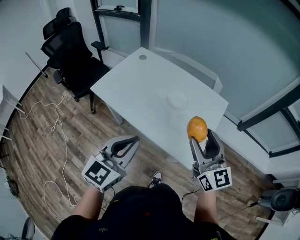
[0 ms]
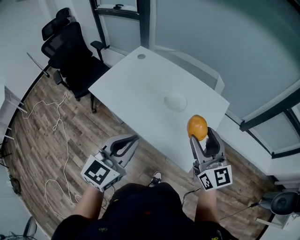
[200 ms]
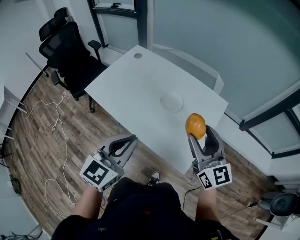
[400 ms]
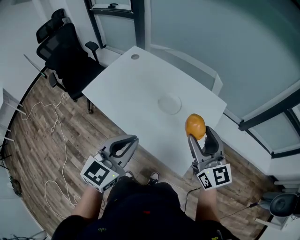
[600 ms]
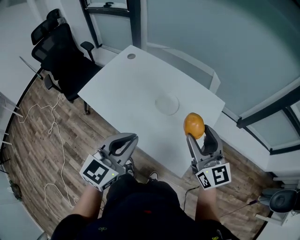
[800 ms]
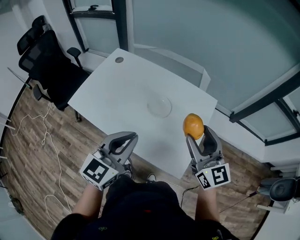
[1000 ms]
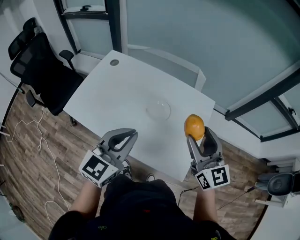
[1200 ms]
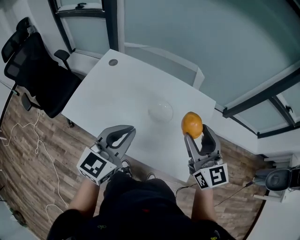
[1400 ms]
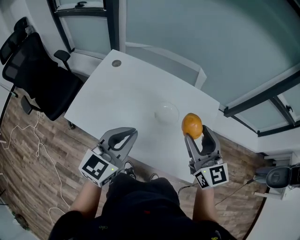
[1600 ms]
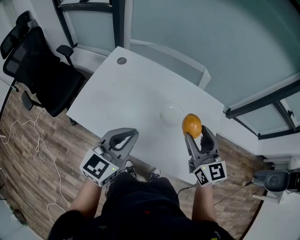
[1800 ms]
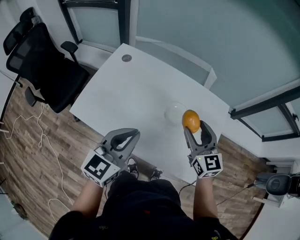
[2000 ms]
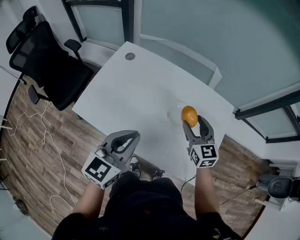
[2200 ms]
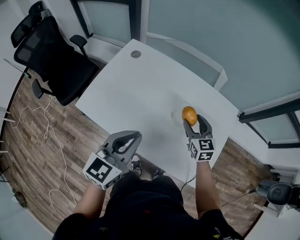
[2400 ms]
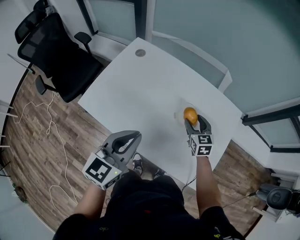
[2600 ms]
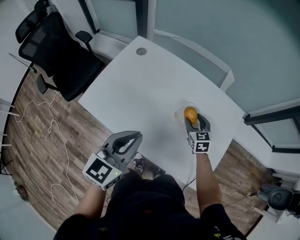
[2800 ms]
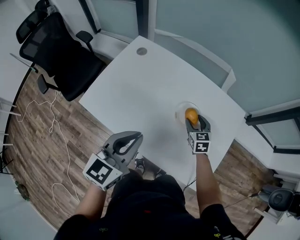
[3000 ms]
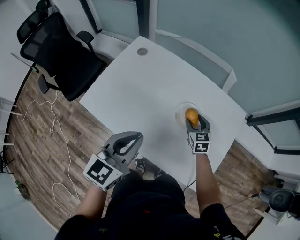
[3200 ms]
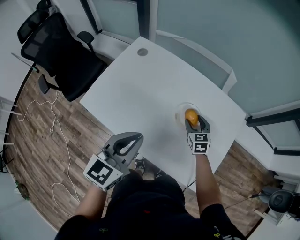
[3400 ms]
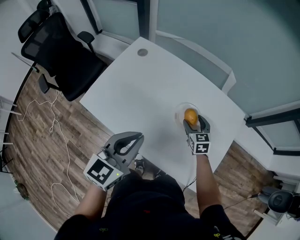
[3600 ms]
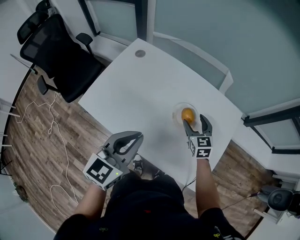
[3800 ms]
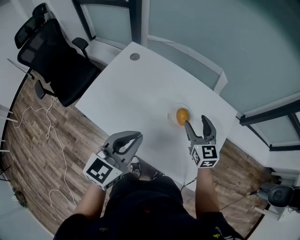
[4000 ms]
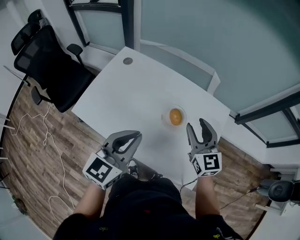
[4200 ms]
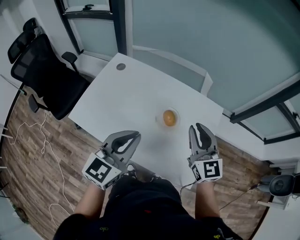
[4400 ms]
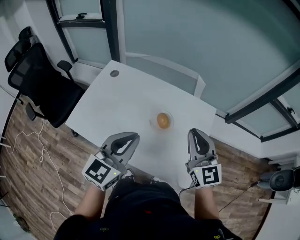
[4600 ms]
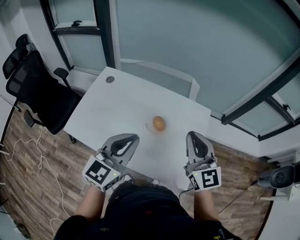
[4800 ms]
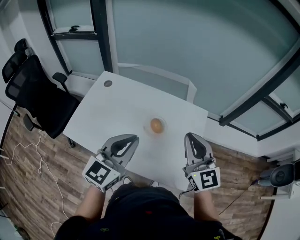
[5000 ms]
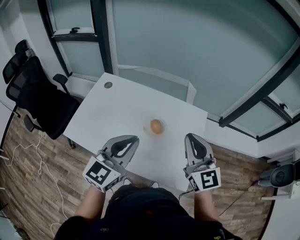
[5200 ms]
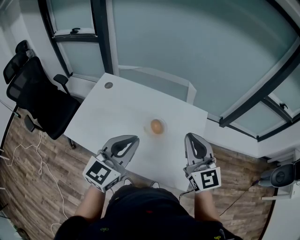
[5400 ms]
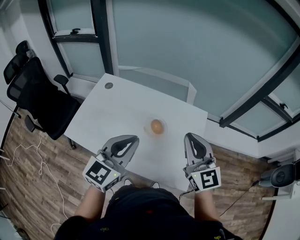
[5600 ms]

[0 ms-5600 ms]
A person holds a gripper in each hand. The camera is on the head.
0 ms to 1400 ms: Both grippers travel together forward, approximately 20 cm.
1400 ms to 2800 ms: The left gripper goes about 10 cm to the left and downward, while the right gripper goes some 35 cm downward and forward, and points its fingers approximately 30 degrees further downward.
2800 ms to 4200 ms: The right gripper travels upward by approximately 20 cm, and turns by some 30 degrees; the left gripper ends up some 5 cm from where it was.
4200 ms to 5600 ms: The left gripper travels upward and to the right by some 10 cm; the right gripper heads upward, backward and to the right, covering about 15 cm, and closes its fingers.

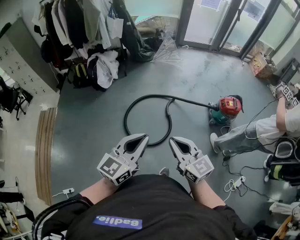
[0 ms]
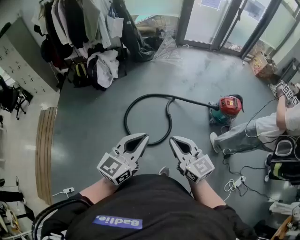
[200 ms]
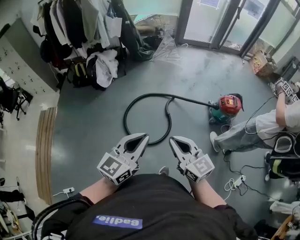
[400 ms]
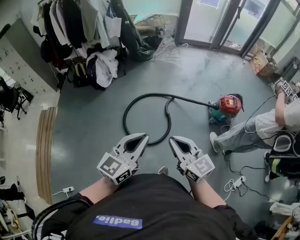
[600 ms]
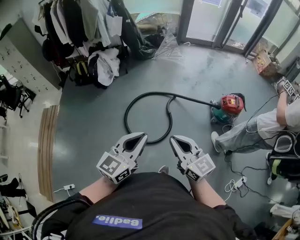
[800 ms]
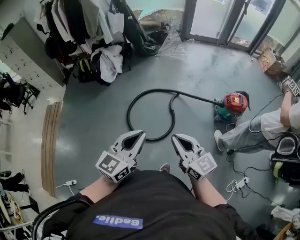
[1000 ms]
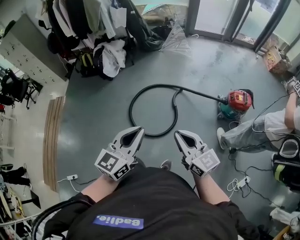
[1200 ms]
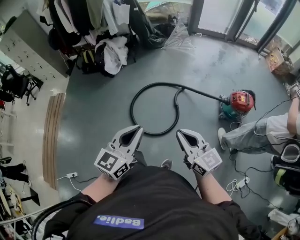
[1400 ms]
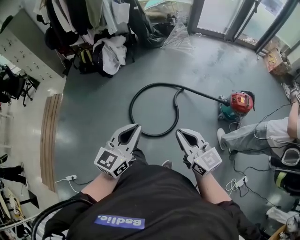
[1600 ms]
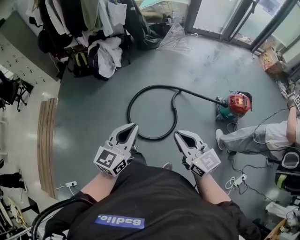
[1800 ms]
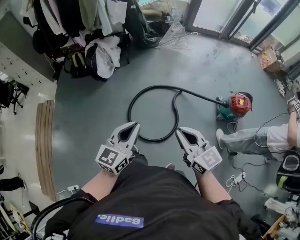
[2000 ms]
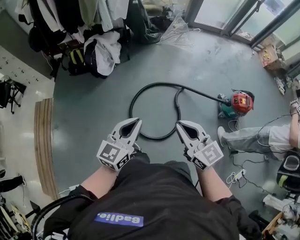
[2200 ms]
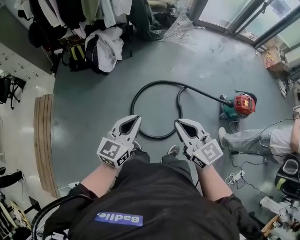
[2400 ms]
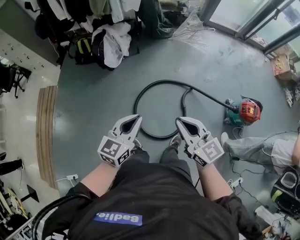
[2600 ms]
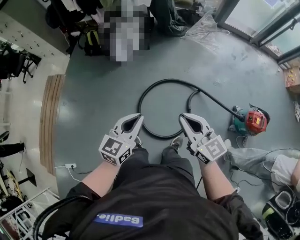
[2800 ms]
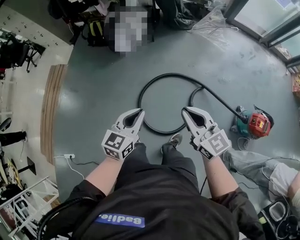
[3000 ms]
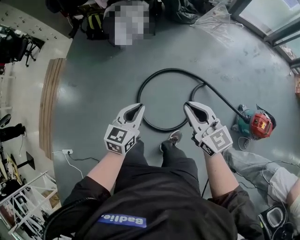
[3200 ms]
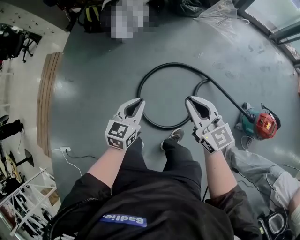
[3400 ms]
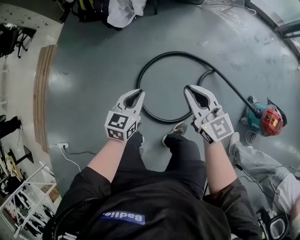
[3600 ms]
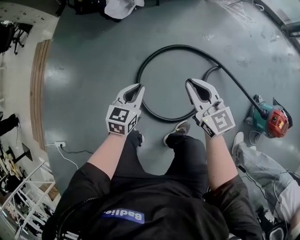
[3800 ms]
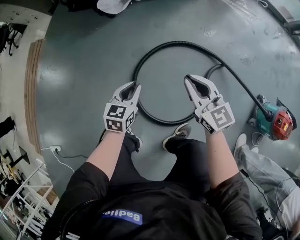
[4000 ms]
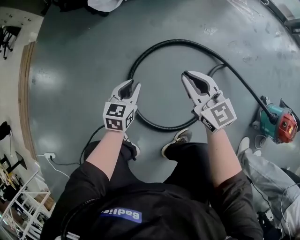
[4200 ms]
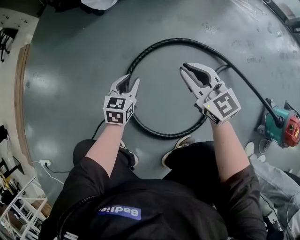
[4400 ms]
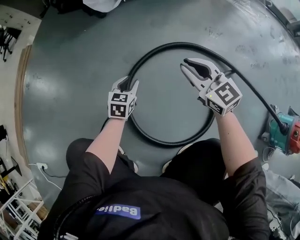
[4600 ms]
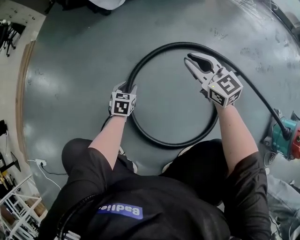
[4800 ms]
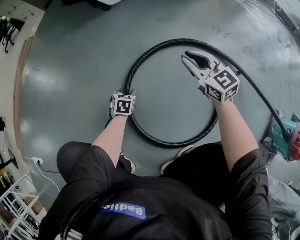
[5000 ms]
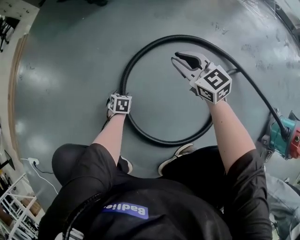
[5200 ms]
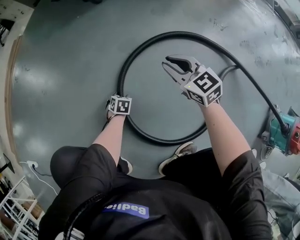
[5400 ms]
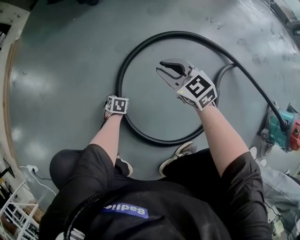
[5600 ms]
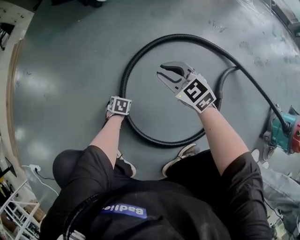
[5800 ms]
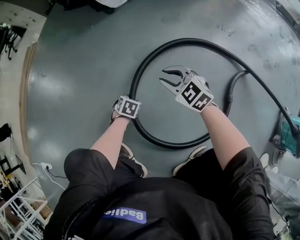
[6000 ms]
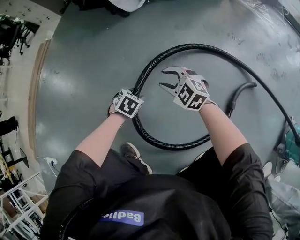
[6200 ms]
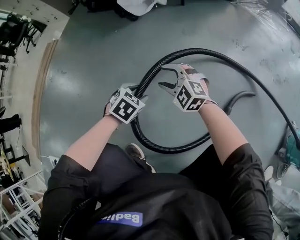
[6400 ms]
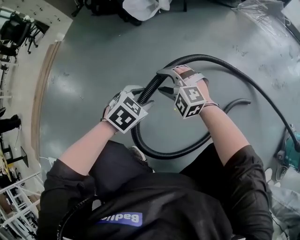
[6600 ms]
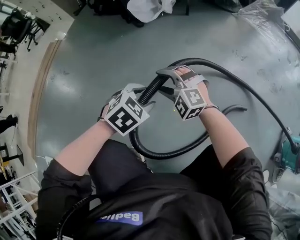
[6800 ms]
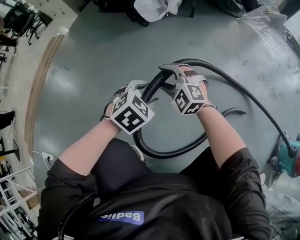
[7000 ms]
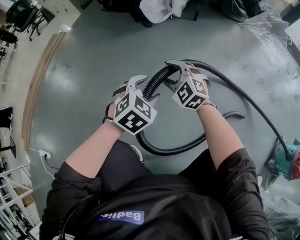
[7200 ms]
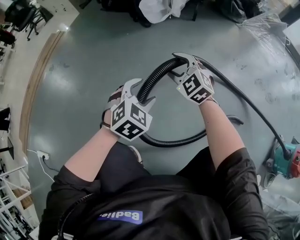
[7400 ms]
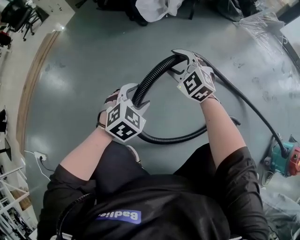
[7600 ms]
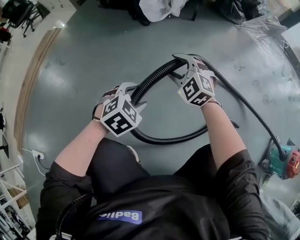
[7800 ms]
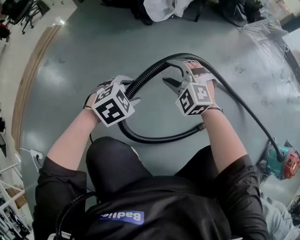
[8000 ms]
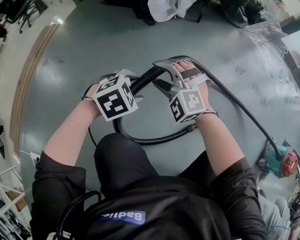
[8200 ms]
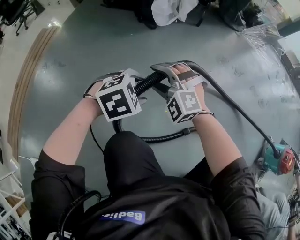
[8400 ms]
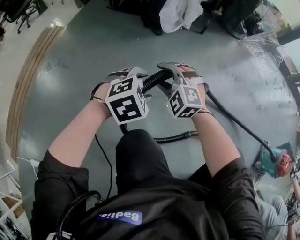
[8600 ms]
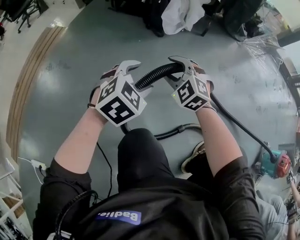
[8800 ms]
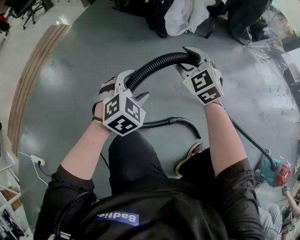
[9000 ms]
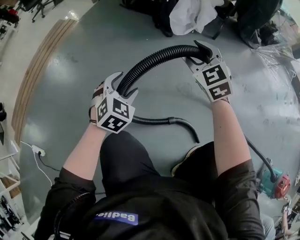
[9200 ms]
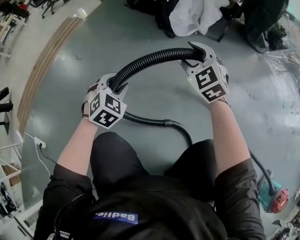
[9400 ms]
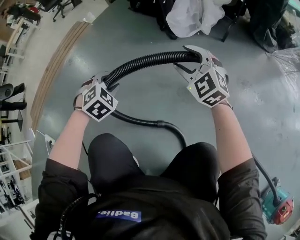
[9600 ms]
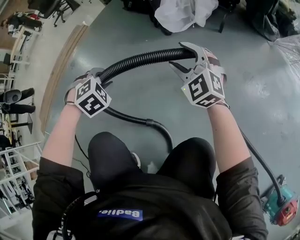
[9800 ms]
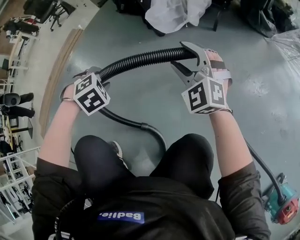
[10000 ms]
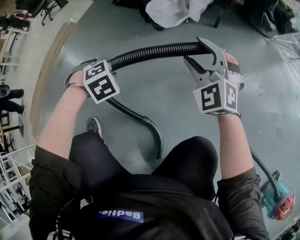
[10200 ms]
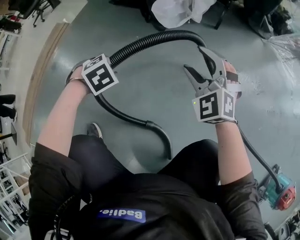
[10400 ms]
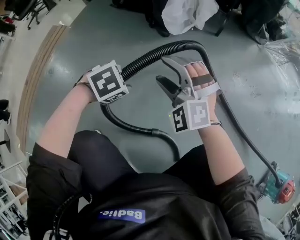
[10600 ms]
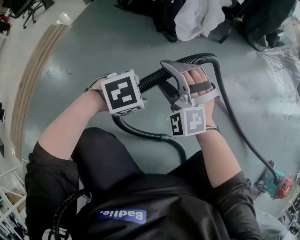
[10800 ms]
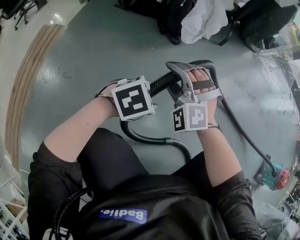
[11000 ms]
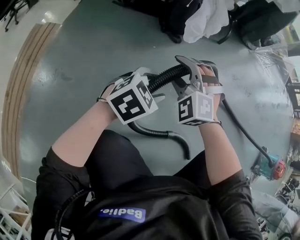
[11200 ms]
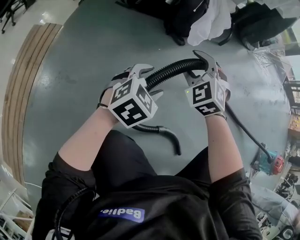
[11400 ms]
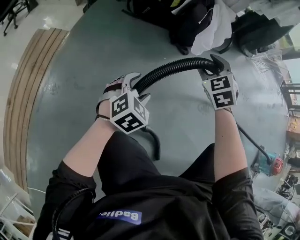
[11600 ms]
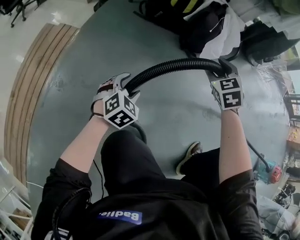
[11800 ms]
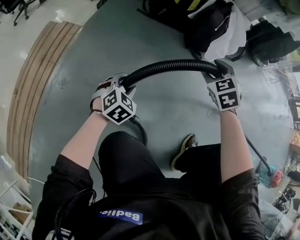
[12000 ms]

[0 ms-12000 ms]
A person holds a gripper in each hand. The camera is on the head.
0 ms to 1600 ms: The left gripper shifts roughly 10 cm forward and downward; the right gripper travels forward by some 5 cm.
1600 ms to 3000 ms: The left gripper shifts roughly 30 cm forward and downward, and changes its angle by some 20 degrees. The right gripper is displaced forward by about 30 cm.
3000 ms to 4400 ms: Both grippers travel together downward, about 60 cm.
4400 ms to 6000 ms: The two grippers go roughly 20 cm downward. The right gripper rotates roughly 30 degrees; the left gripper tips its fingers downward by roughly 40 degrees.
6000 ms to 7600 ms: The right gripper moves about 20 cm, turns by some 20 degrees, and opens its fingers. Meanwhile the left gripper shifts roughly 30 cm upward, and rotates roughly 40 degrees.
7600 ms to 9000 ms: The right gripper shifts approximately 20 cm to the left, forward and upward, while the left gripper shifts roughly 20 cm to the left and forward.
9000 ms to 10400 ms: The left gripper changes place by about 15 cm, points its fingers some 40 degrees further downward, and closes up, while the right gripper shifts by approximately 15 cm.
10400 ms to 12000 ms: The right gripper shifts by some 35 cm, and swivels roughly 40 degrees, while the left gripper shifts by some 35 cm, and turns by about 30 degrees.

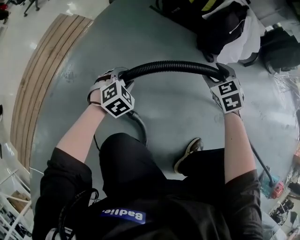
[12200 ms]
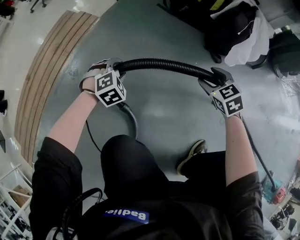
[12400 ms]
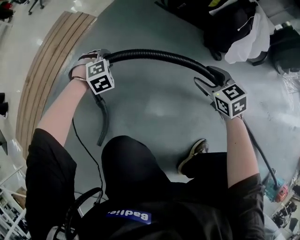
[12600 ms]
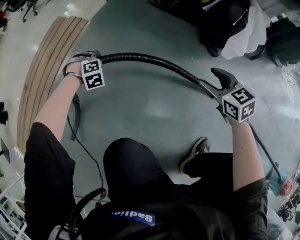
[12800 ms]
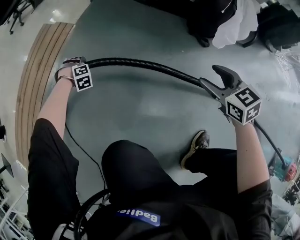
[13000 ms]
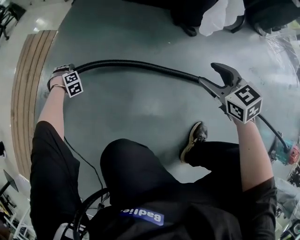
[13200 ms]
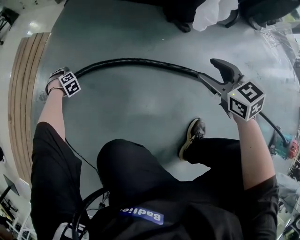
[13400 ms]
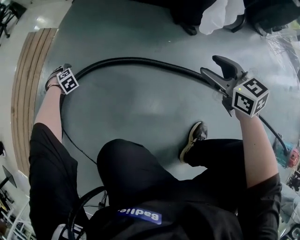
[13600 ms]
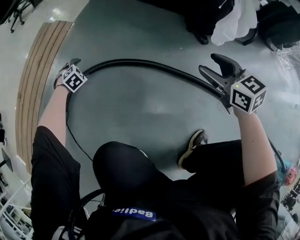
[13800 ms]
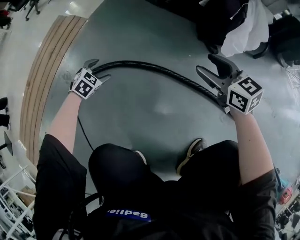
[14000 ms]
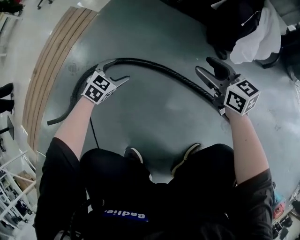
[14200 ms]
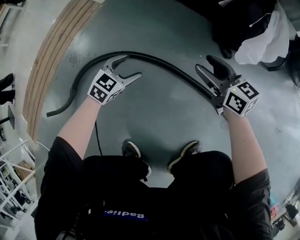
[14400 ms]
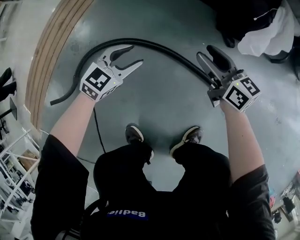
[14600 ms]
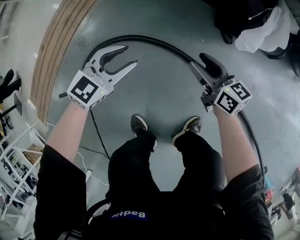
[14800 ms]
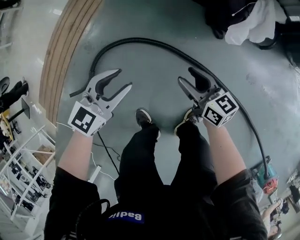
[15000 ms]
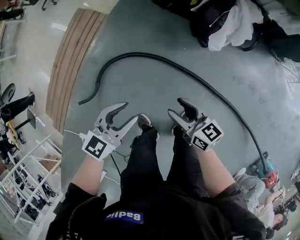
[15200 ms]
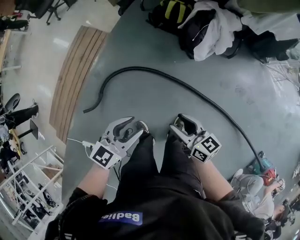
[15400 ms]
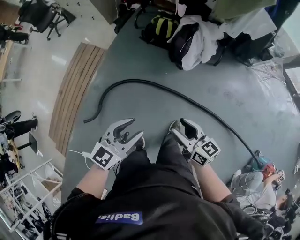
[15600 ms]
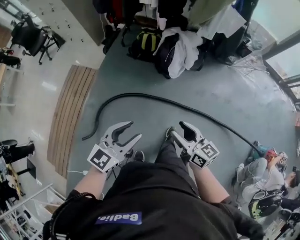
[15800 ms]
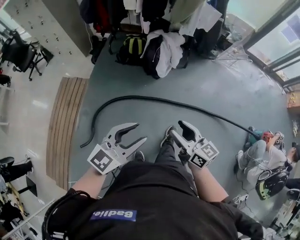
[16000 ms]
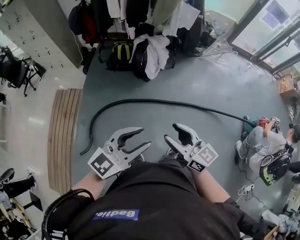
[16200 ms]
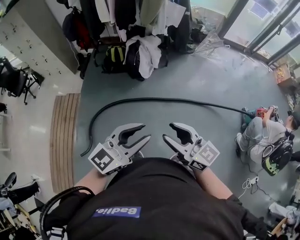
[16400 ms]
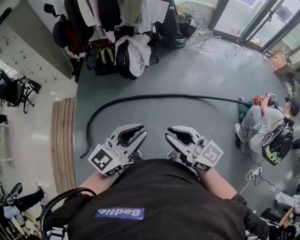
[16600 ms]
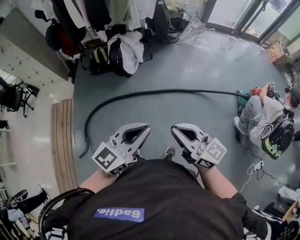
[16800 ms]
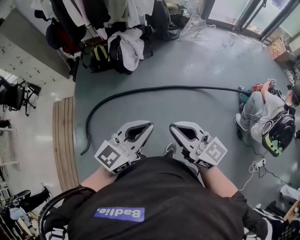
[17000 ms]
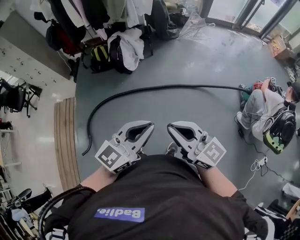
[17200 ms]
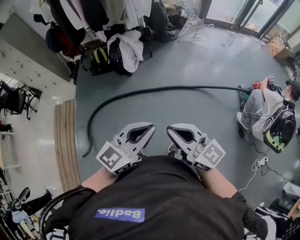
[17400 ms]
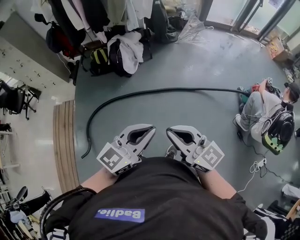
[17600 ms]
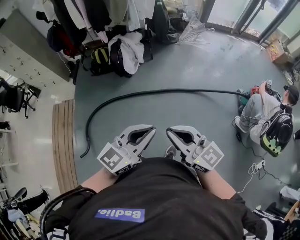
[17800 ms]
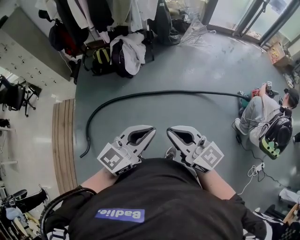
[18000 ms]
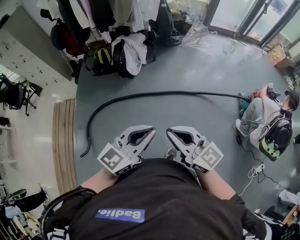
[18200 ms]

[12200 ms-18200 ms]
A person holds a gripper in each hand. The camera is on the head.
12200 ms to 13800 ms: The right gripper rotates about 40 degrees. Meanwhile the left gripper changes place by roughly 25 cm, and opens.
13800 ms to 15200 ms: The right gripper travels upward by about 25 cm, and rotates approximately 30 degrees; the left gripper heads upward, covering roughly 60 cm, points its fingers roughly 50 degrees further upward, and closes its fingers.
15200 ms to 16600 ms: The two grippers travel together, roughly 40 cm. The left gripper swivels roughly 50 degrees. Meanwhile the right gripper heads upward, covering approximately 50 cm, swivels some 40 degrees, and closes up.
16600 ms to 18200 ms: The left gripper is displaced to the right by about 10 cm; the right gripper is displaced to the right by approximately 5 cm.
